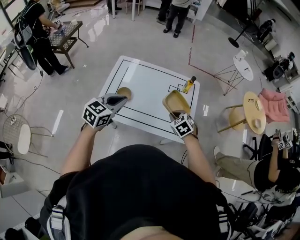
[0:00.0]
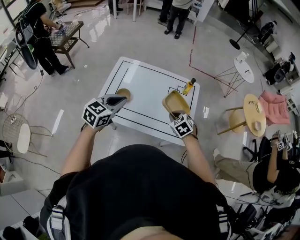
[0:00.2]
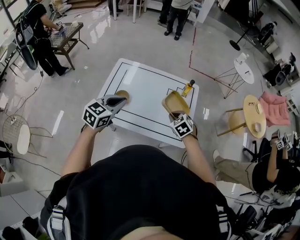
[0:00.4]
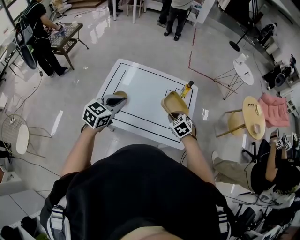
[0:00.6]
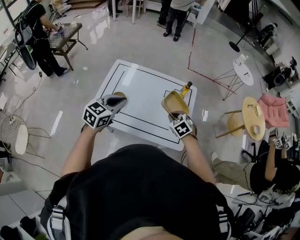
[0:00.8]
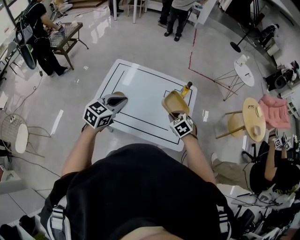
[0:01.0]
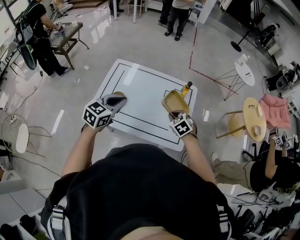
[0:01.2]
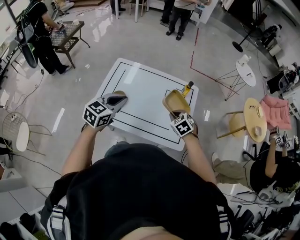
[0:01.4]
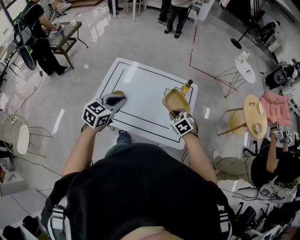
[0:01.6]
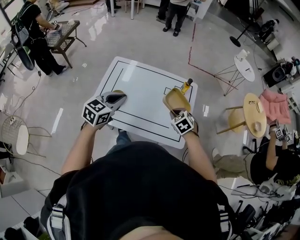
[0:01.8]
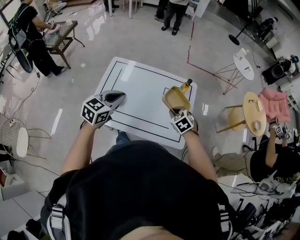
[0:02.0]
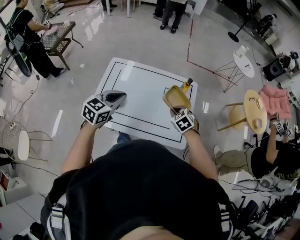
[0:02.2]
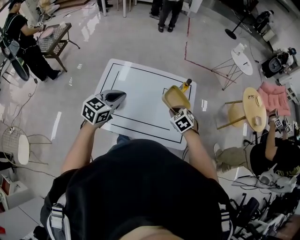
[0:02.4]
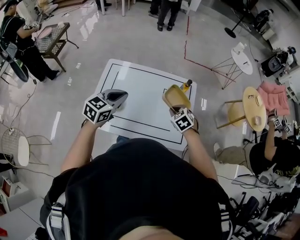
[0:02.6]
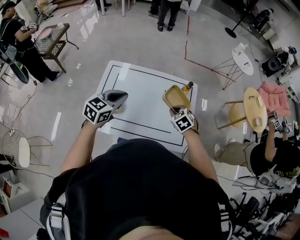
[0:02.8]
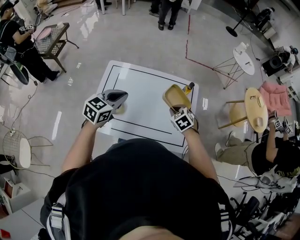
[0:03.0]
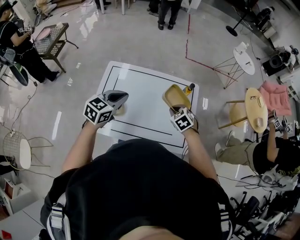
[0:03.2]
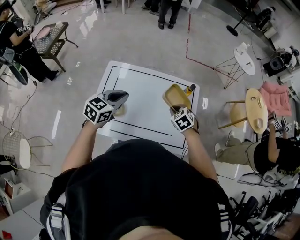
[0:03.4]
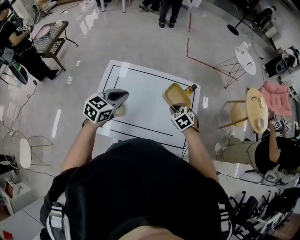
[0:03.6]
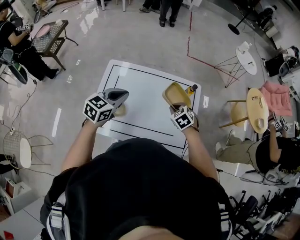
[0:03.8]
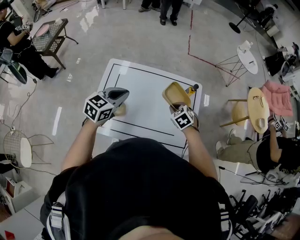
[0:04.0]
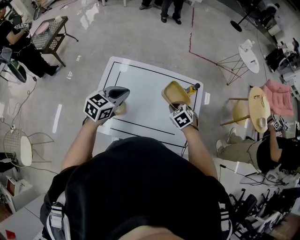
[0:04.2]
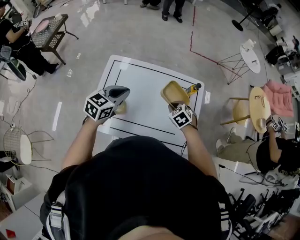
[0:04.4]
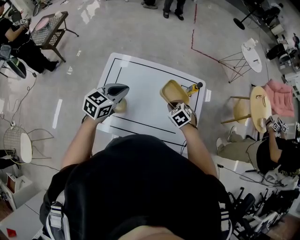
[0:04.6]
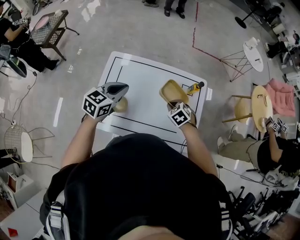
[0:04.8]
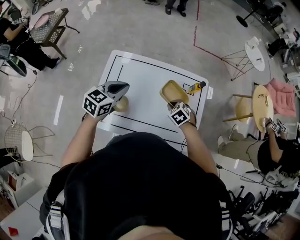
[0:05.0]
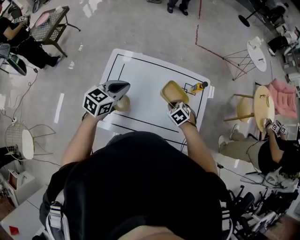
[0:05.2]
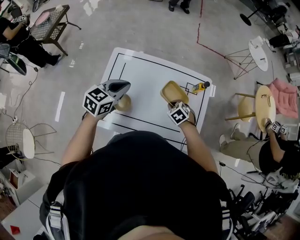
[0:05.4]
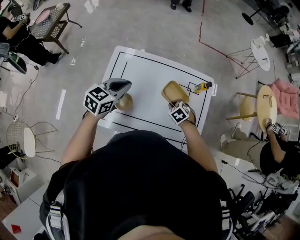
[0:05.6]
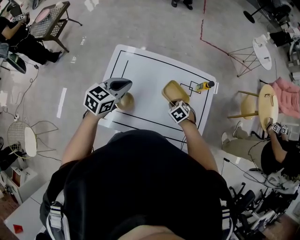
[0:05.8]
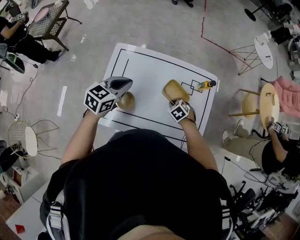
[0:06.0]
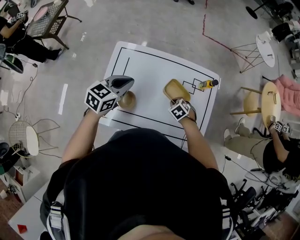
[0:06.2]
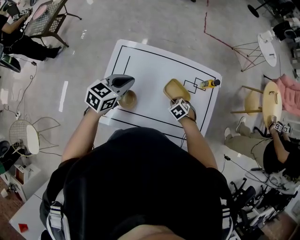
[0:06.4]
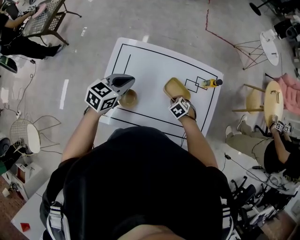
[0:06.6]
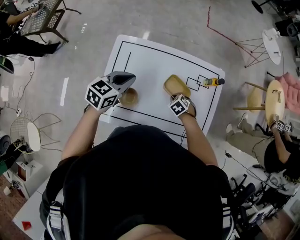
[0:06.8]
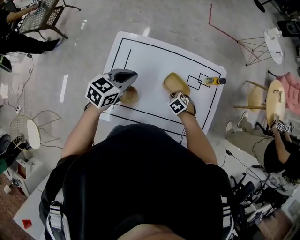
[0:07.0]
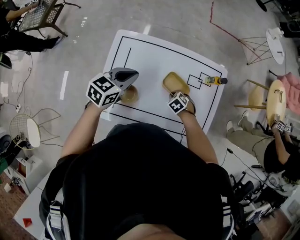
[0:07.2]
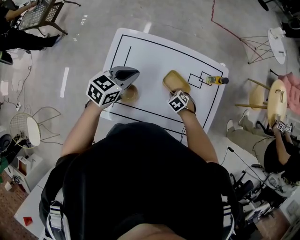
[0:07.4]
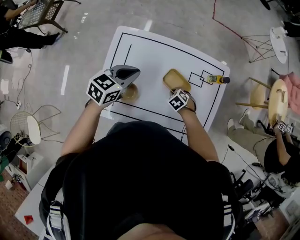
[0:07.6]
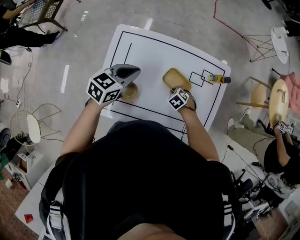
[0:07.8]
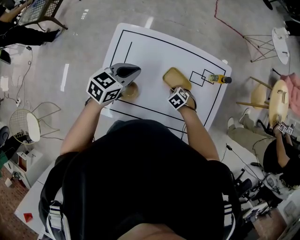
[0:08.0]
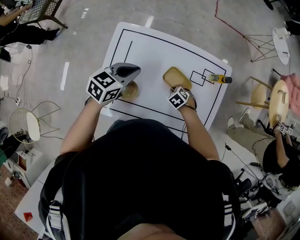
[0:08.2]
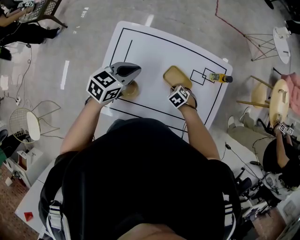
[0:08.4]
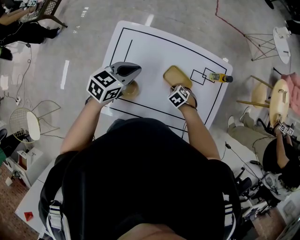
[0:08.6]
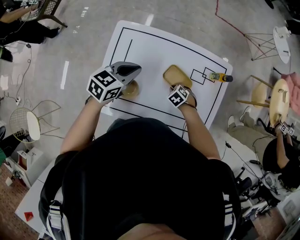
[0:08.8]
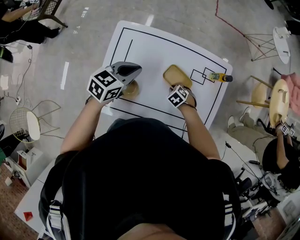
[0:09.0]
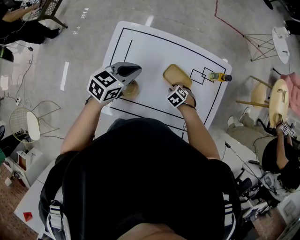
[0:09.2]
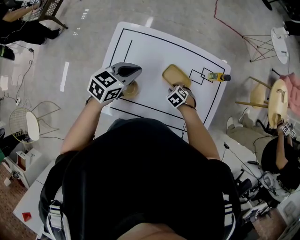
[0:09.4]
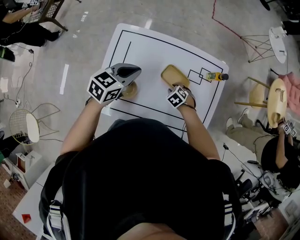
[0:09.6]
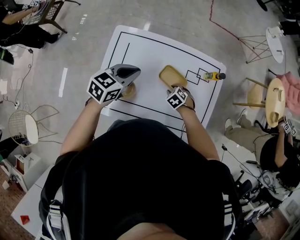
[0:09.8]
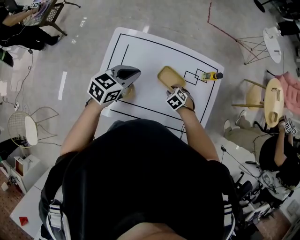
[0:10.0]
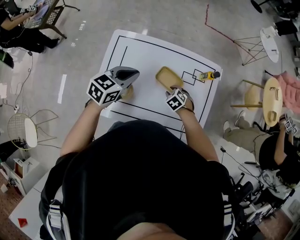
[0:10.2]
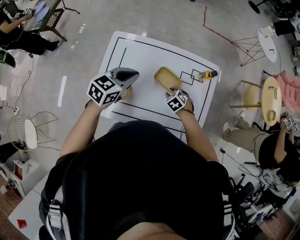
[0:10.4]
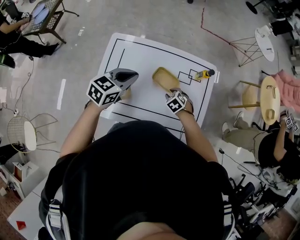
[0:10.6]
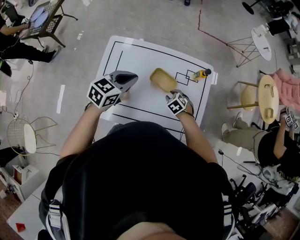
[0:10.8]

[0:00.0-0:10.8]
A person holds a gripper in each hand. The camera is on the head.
0:00.0 to 0:01.6: The right gripper goes about 5 cm forward, while the left gripper changes place by some 5 cm.
0:01.6 to 0:03.0: The grippers both shift forward by roughly 10 cm.
0:03.0 to 0:04.6: The right gripper ends up roughly 5 cm from where it was. The left gripper shifts roughly 5 cm forward.
0:04.6 to 0:06.2: The left gripper shifts by approximately 5 cm, while the right gripper travels downward by roughly 15 cm.
0:06.2 to 0:07.8: The grippers both shift downward by about 5 cm.
0:07.8 to 0:09.2: The right gripper opens.
0:09.2 to 0:10.8: The left gripper ends up approximately 10 cm from where it was; the right gripper is displaced upward by about 10 cm.

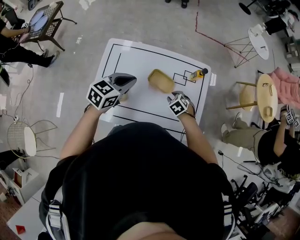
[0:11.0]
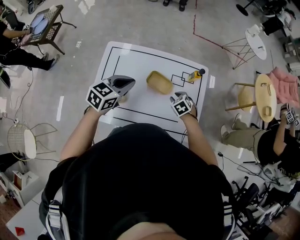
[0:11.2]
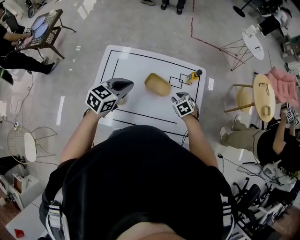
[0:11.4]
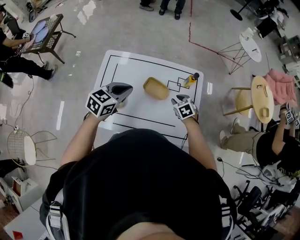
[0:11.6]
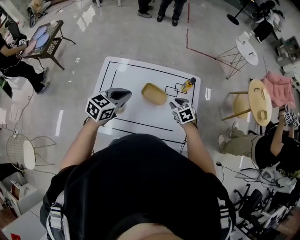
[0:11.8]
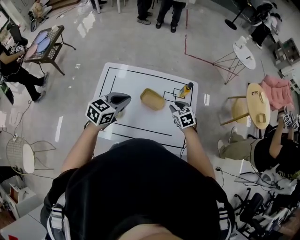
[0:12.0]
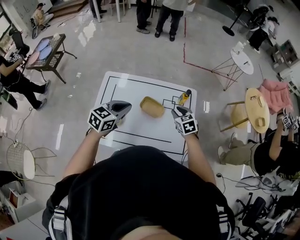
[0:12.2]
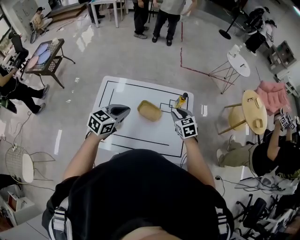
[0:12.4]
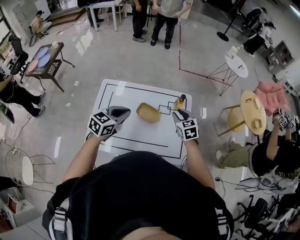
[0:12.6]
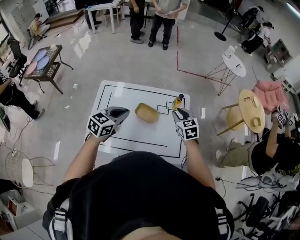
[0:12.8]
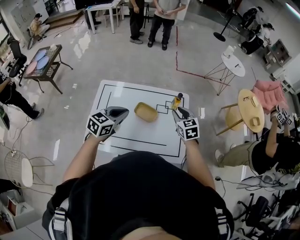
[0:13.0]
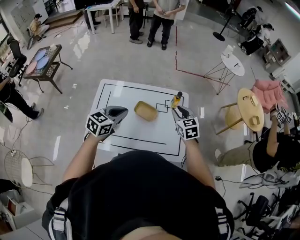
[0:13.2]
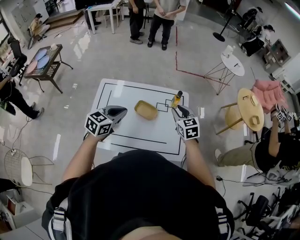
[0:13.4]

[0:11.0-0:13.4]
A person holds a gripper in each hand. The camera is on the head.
0:11.0 to 0:12.2: The right gripper travels upward by approximately 15 cm, and changes its angle by roughly 30 degrees. Meanwhile the left gripper moves approximately 5 cm.
0:12.2 to 0:13.4: The right gripper is displaced upward by about 10 cm.

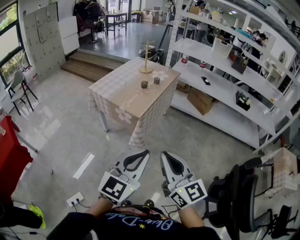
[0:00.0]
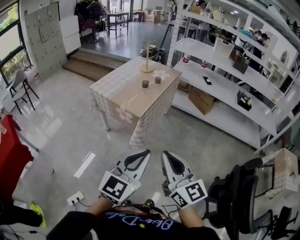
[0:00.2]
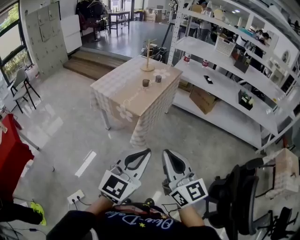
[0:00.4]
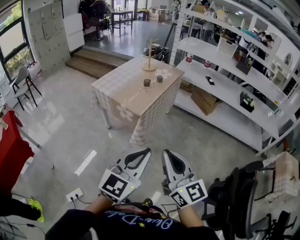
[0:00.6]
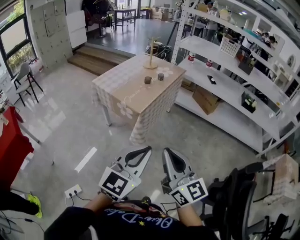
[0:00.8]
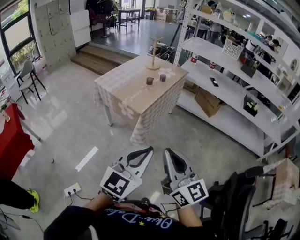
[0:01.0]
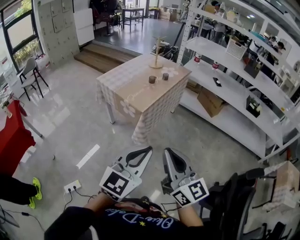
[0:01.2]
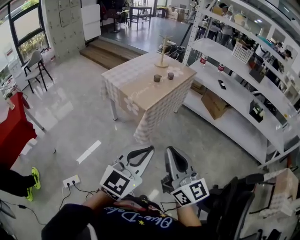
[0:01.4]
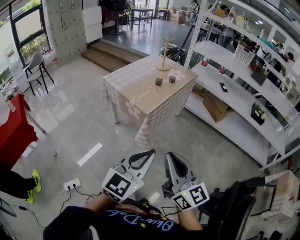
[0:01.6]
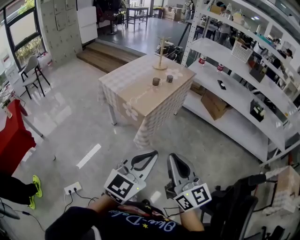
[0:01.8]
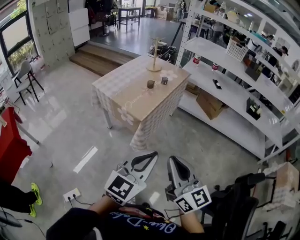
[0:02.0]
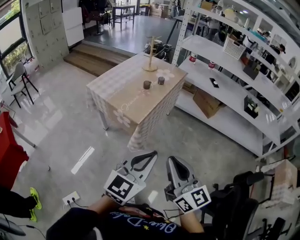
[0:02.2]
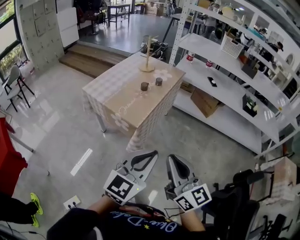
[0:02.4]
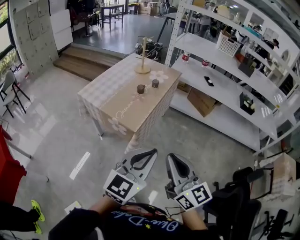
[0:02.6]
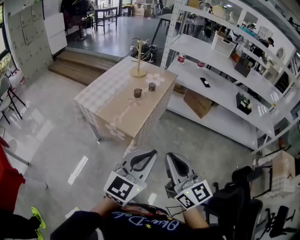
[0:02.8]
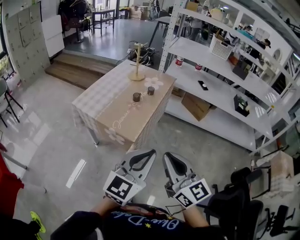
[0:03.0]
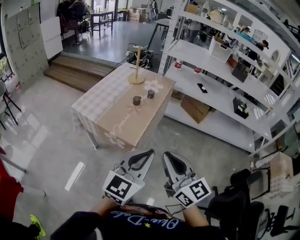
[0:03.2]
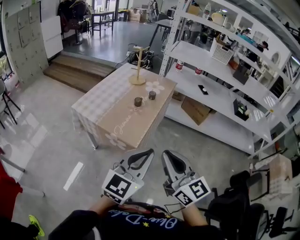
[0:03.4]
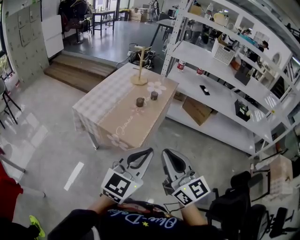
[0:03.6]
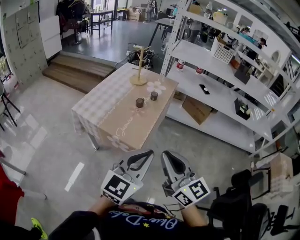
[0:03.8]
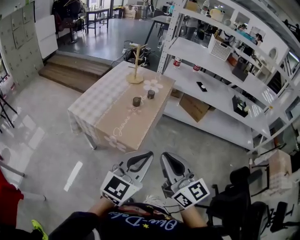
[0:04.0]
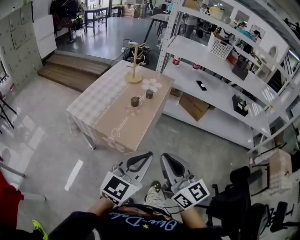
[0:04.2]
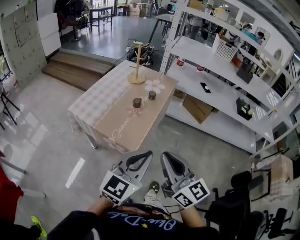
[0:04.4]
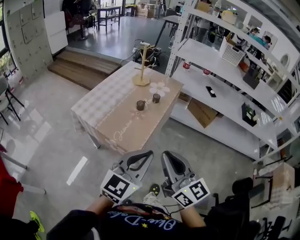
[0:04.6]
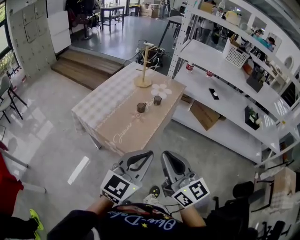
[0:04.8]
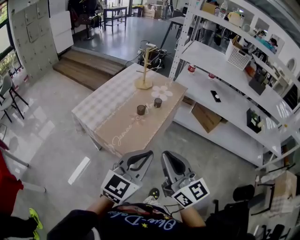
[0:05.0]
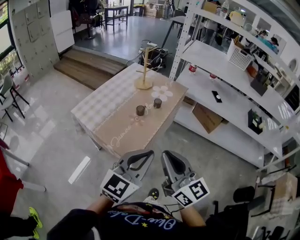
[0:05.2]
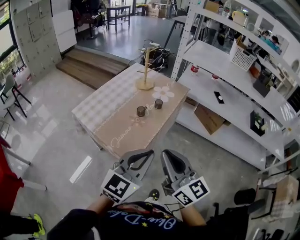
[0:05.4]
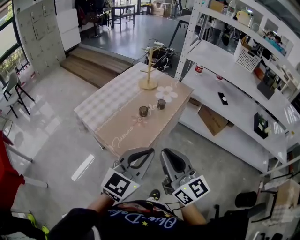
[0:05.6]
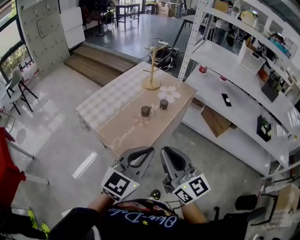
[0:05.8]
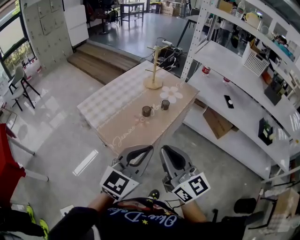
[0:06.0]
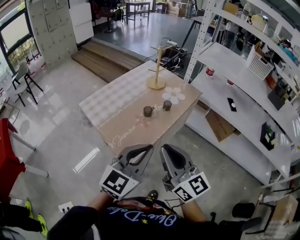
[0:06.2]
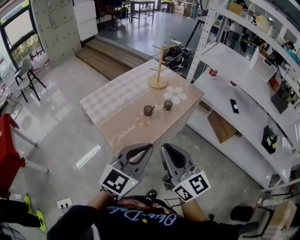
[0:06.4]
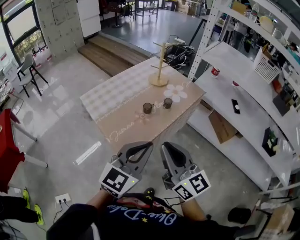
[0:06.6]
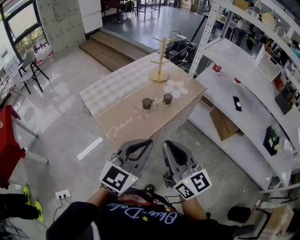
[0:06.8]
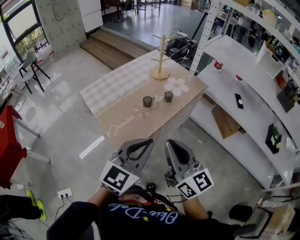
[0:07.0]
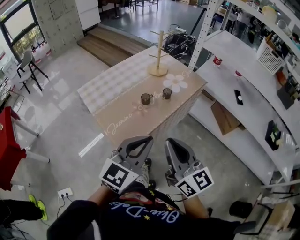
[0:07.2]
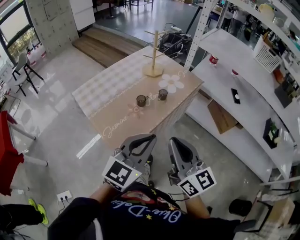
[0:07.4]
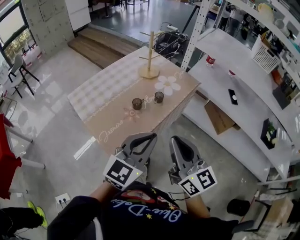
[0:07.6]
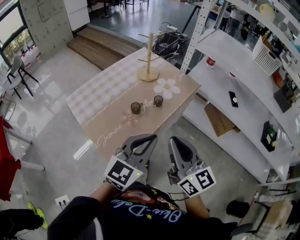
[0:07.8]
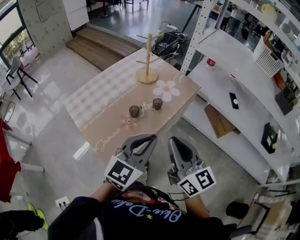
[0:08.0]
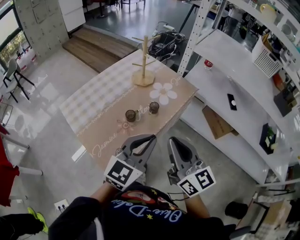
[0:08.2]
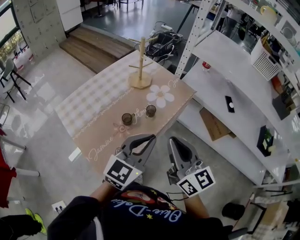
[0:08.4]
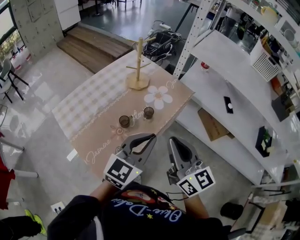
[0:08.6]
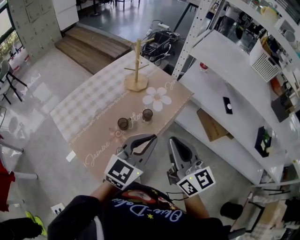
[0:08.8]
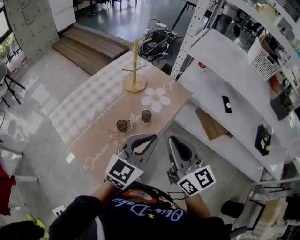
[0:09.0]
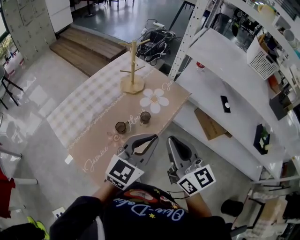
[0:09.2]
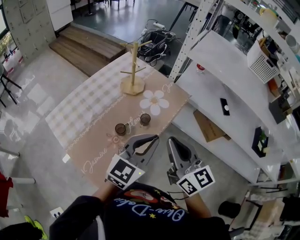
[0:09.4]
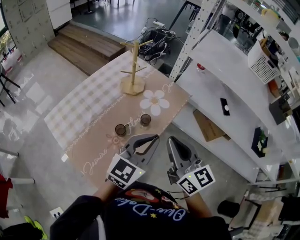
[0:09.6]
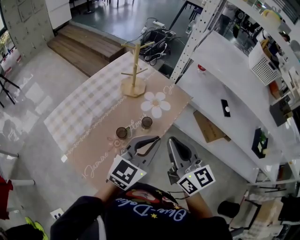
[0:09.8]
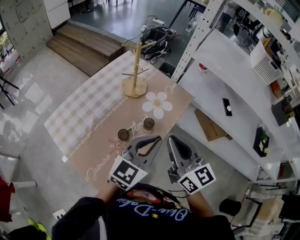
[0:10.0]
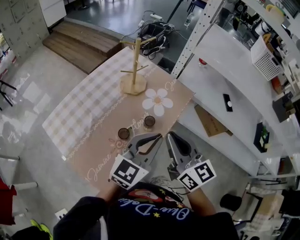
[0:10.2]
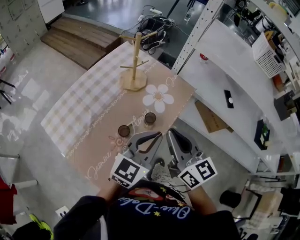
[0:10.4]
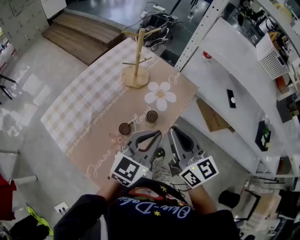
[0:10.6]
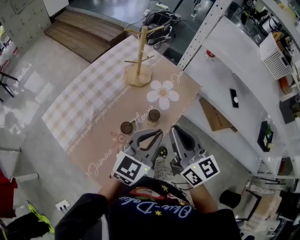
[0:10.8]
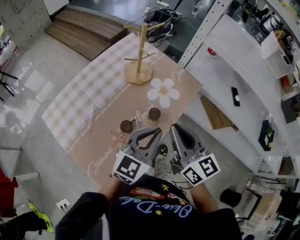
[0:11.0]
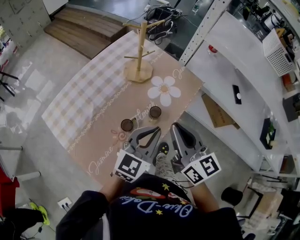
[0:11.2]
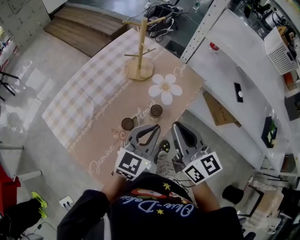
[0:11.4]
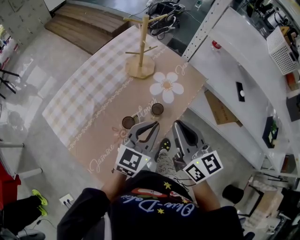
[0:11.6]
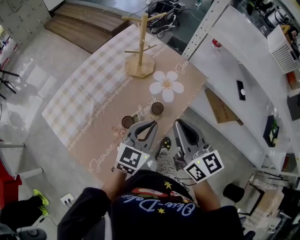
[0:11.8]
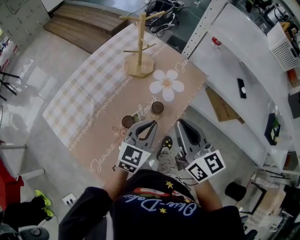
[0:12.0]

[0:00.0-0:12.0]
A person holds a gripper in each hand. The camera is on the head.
0:00.0 to 0:01.6: The left gripper shifts by some 5 cm.
0:01.6 to 0:03.0: Both grippers travel together forward, about 20 cm.
0:03.0 to 0:04.4: The grippers both shift forward by about 10 cm.
0:04.4 to 0:06.0: Both grippers travel together forward, approximately 15 cm.
0:06.0 to 0:07.6: The right gripper moves to the right and forward, about 10 cm. Meanwhile the left gripper moves forward and to the right, about 10 cm.
0:07.6 to 0:09.0: Both grippers move forward, about 15 cm.
0:09.0 to 0:10.4: The grippers both shift forward by some 5 cm.
0:10.4 to 0:12.0: The left gripper moves downward, roughly 10 cm.
